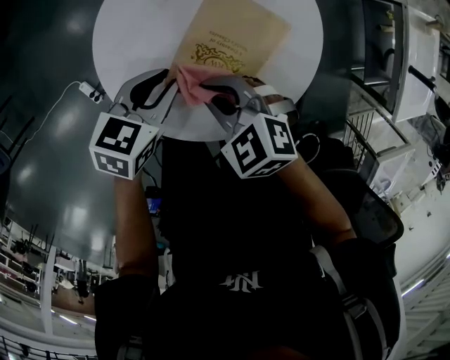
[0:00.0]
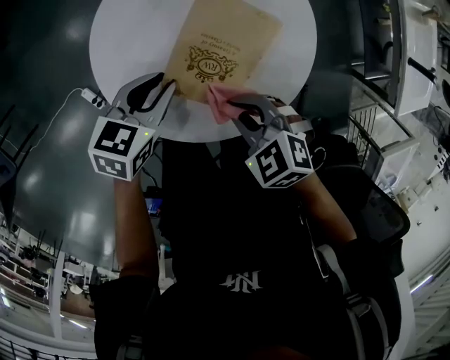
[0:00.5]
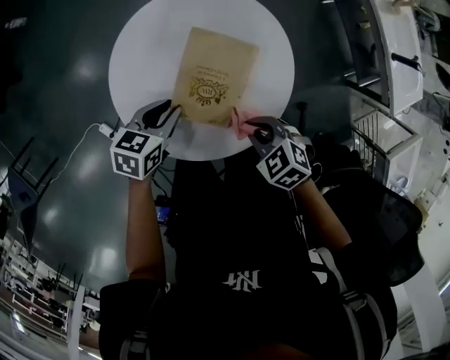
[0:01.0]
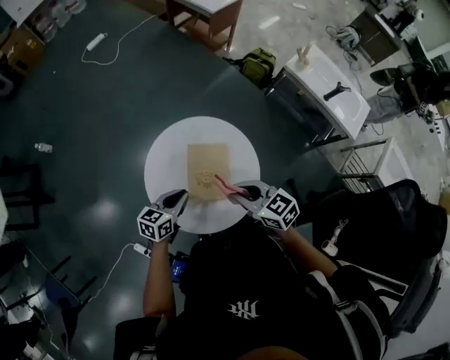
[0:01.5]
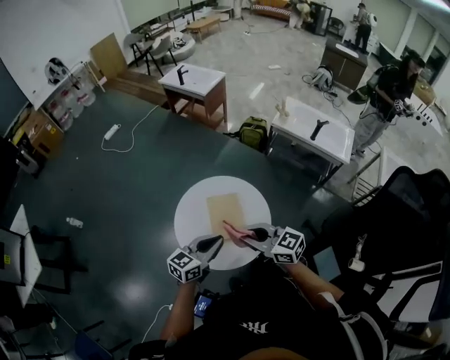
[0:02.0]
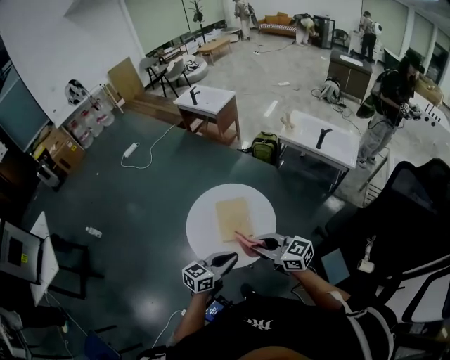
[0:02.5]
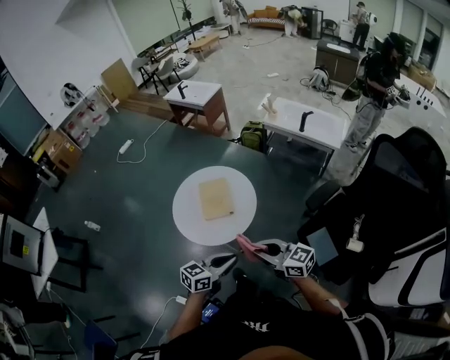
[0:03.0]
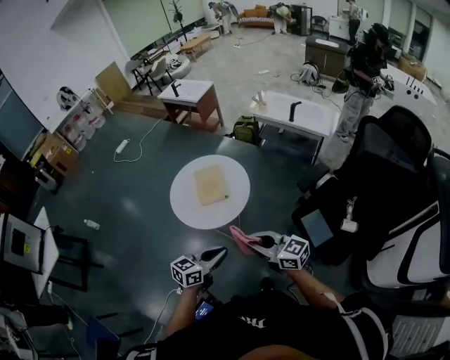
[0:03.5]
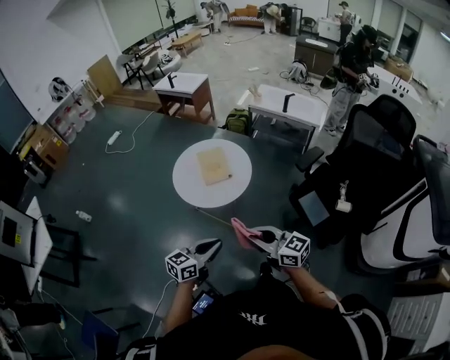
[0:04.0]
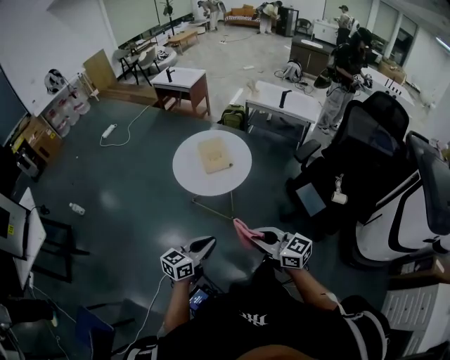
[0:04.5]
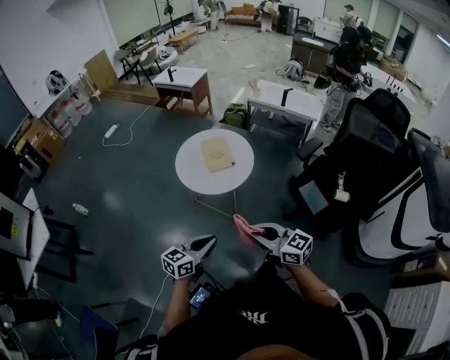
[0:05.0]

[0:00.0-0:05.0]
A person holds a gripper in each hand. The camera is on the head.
0:00.0 to 0:02.5: The two grippers go approximately 35 cm upward. The left gripper points its fingers roughly 30 degrees further upward. Meanwhile the right gripper tips its fingers upward by some 40 degrees.
0:02.5 to 0:05.0: Both grippers travel together backward, some 40 cm.

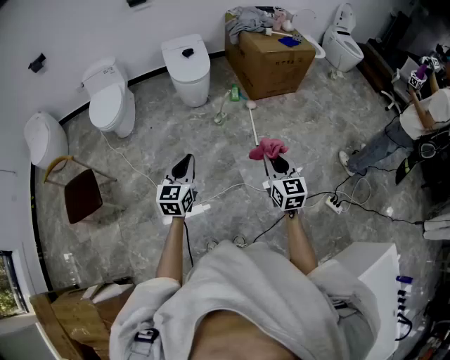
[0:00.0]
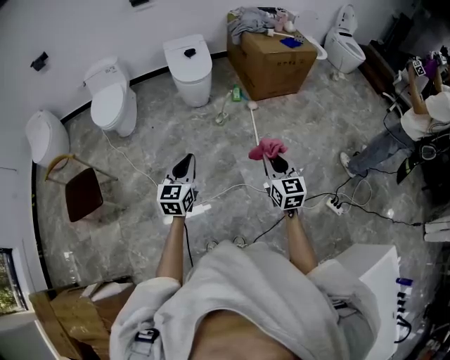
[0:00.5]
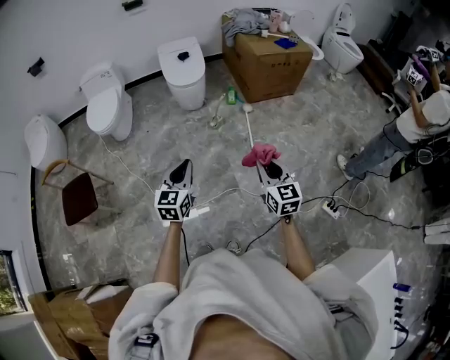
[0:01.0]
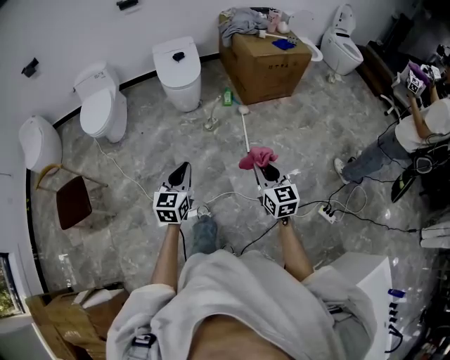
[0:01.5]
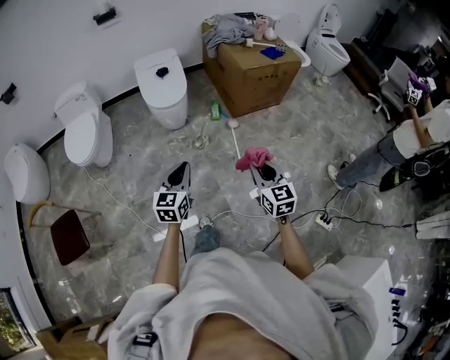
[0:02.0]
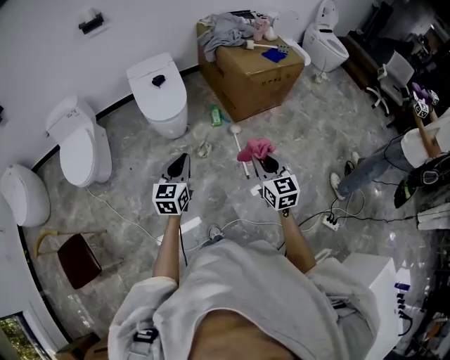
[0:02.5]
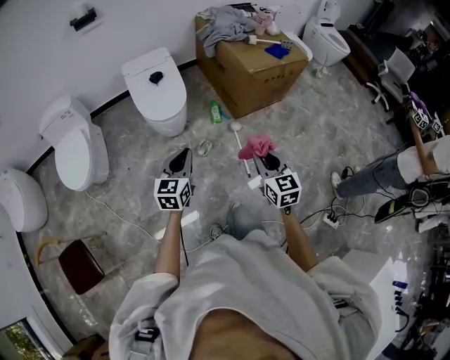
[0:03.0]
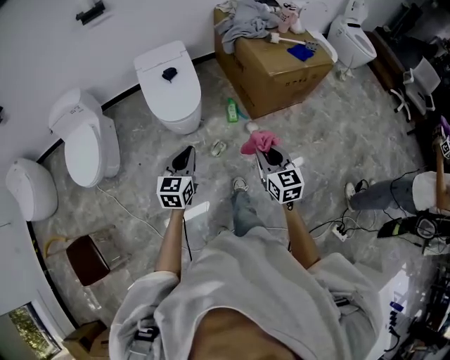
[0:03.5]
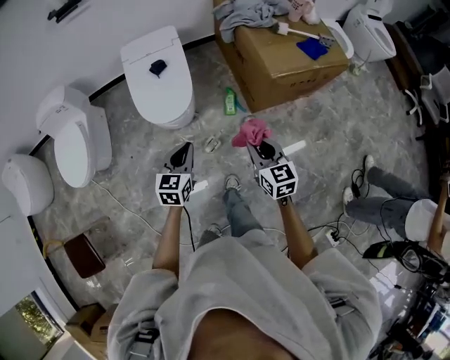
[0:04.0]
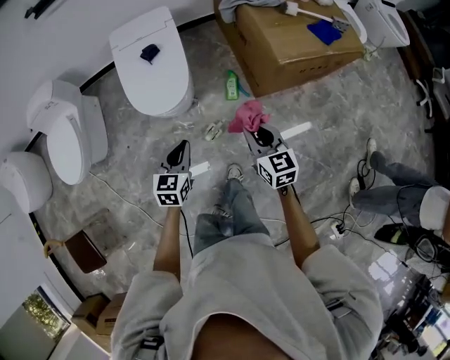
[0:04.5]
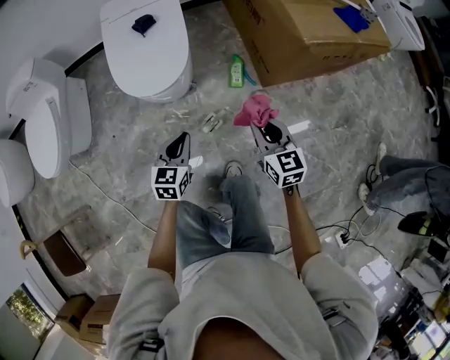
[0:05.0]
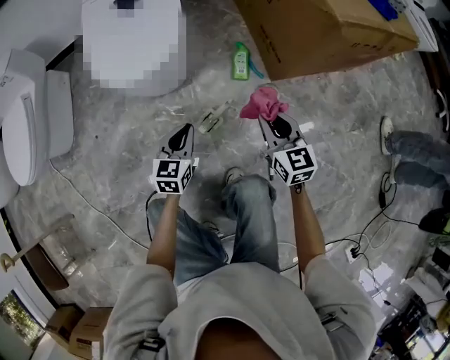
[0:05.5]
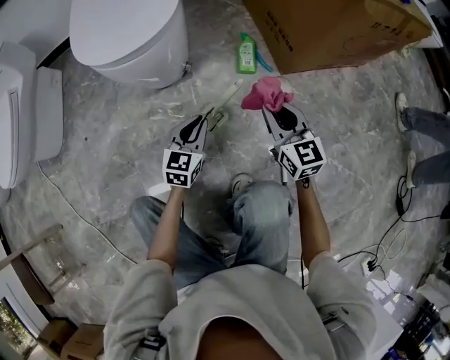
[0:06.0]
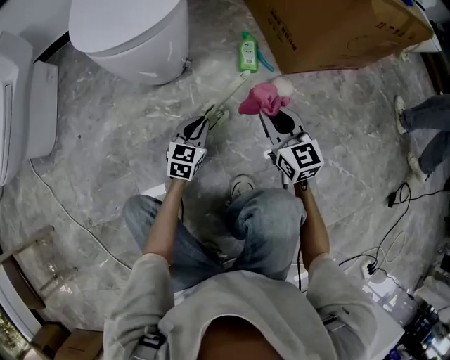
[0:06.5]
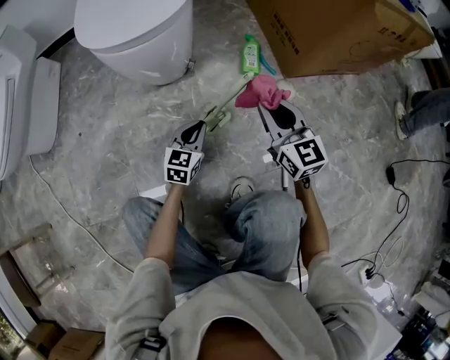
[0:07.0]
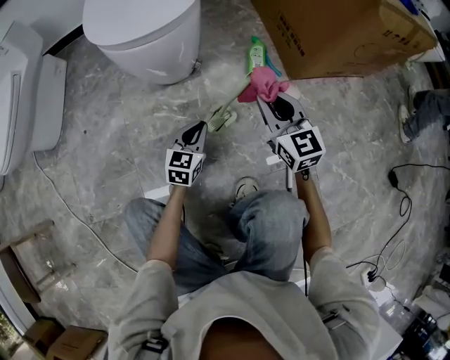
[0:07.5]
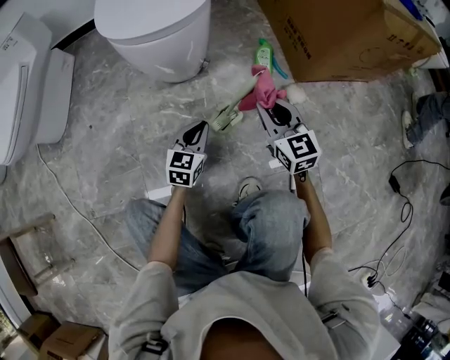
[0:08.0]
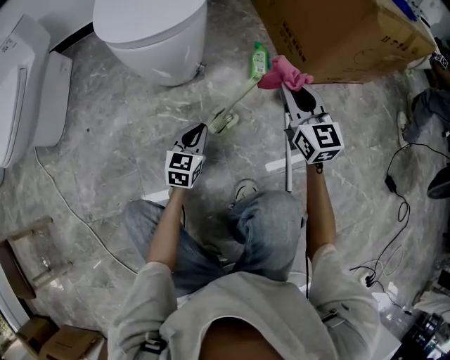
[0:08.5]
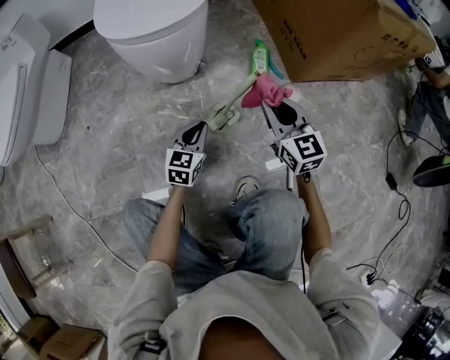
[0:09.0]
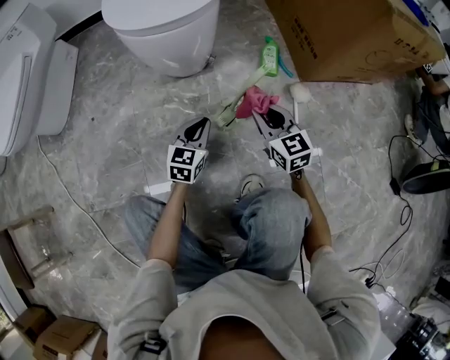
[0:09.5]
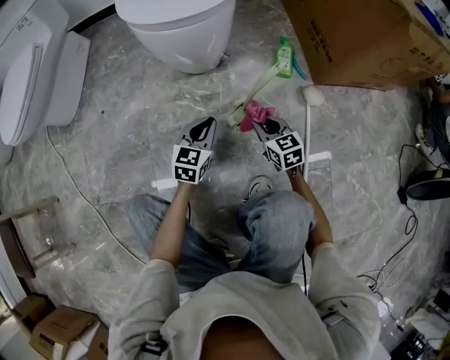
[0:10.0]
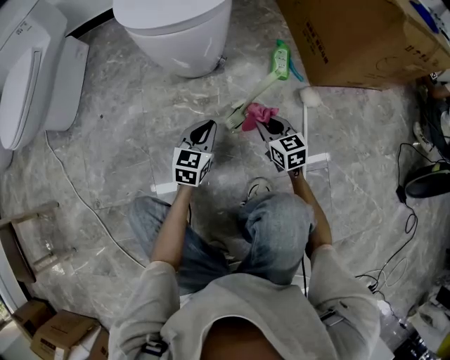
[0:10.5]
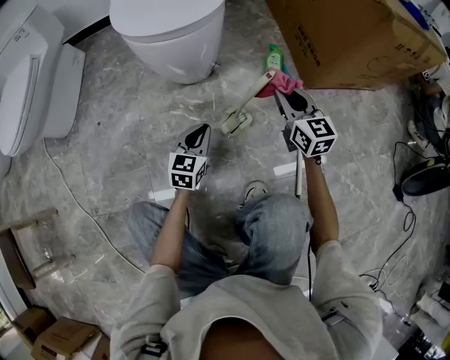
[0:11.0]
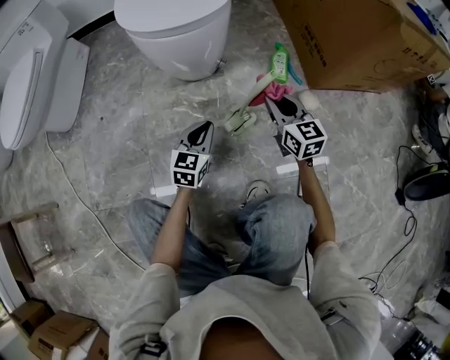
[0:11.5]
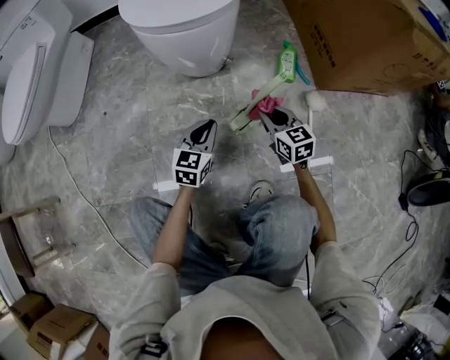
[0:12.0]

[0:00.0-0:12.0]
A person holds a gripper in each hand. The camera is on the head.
0:00.0 to 0:02.0: Both grippers move forward, some 20 cm.
0:02.0 to 0:04.0: The two grippers travel together, forward, about 40 cm.
0:04.0 to 0:06.0: Both grippers travel together downward, approximately 50 cm.
0:06.0 to 0:08.0: The right gripper travels to the left by about 5 cm; the left gripper shifts by about 5 cm.
0:08.0 to 0:10.0: The right gripper moves downward, some 15 cm, and swivels some 20 degrees.
0:10.0 to 0:12.0: The right gripper reaches approximately 15 cm upward, then returns.

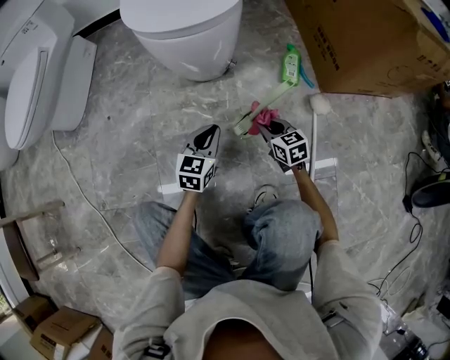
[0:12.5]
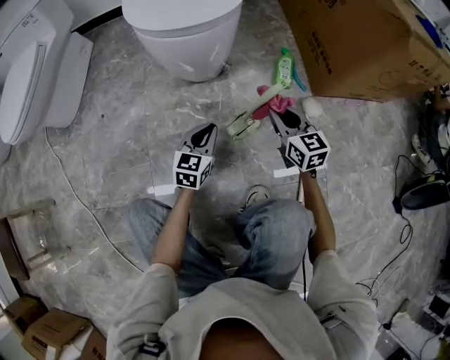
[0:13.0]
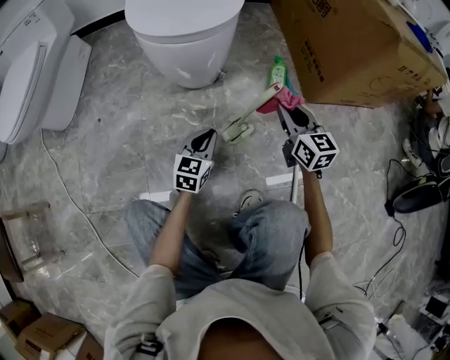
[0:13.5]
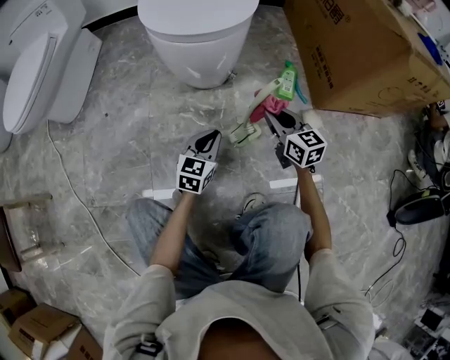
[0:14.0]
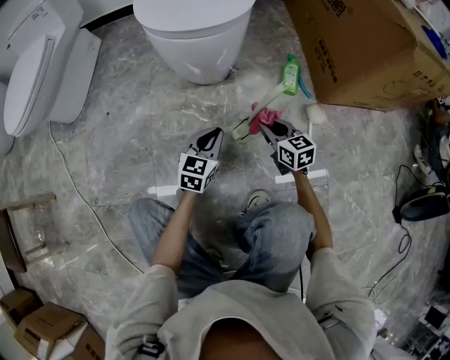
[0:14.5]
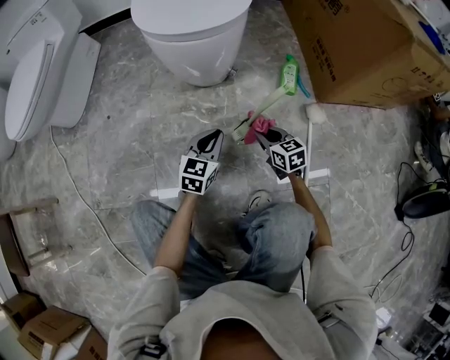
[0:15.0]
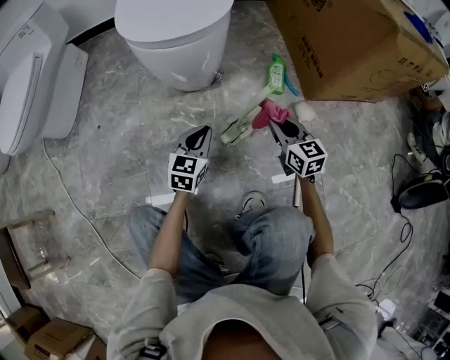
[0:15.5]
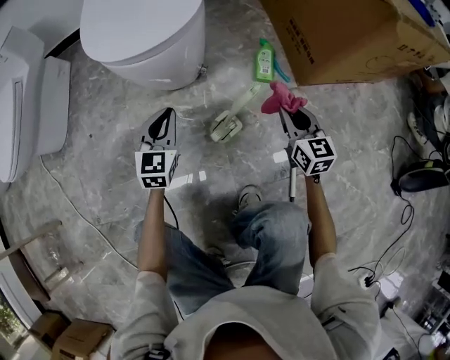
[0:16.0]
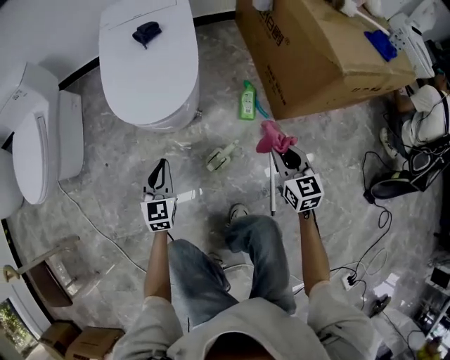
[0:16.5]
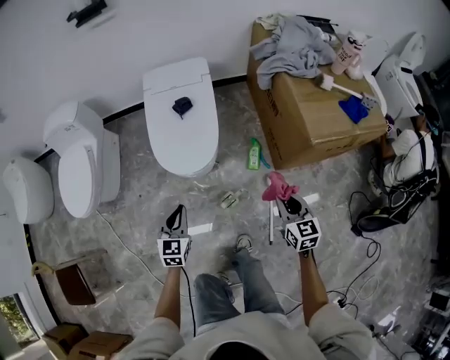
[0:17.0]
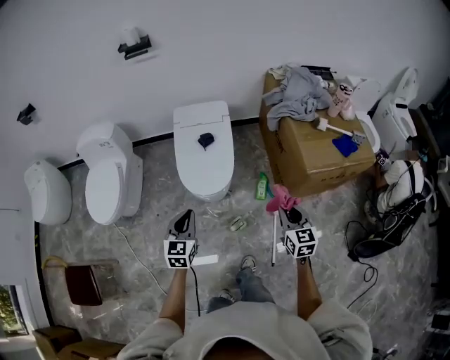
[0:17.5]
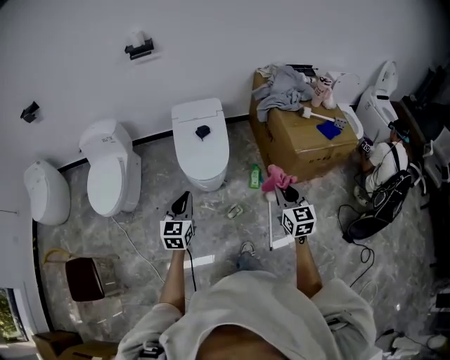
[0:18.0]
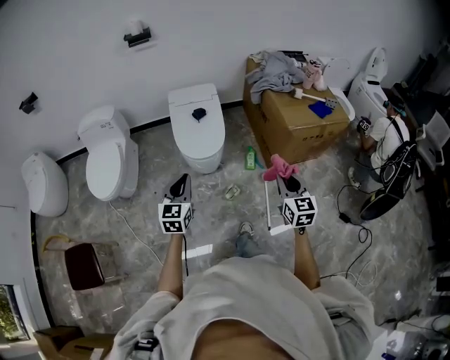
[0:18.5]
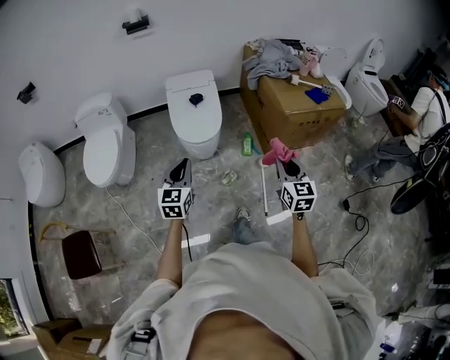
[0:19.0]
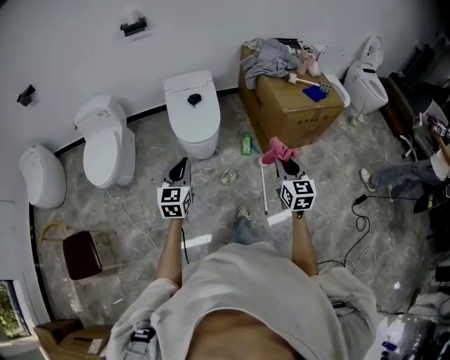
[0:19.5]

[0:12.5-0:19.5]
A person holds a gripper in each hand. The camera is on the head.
0:12.5 to 0:14.5: The right gripper goes upward and returns, roughly 20 cm each way.
0:14.5 to 0:16.0: The right gripper travels to the right and upward by approximately 15 cm, and changes its angle by some 20 degrees. The left gripper goes roughly 10 cm forward and upward.
0:16.0 to 0:17.5: The two grippers go roughly 50 cm upward.
0:17.5 to 0:19.5: Both grippers travel together backward and upward, some 20 cm.

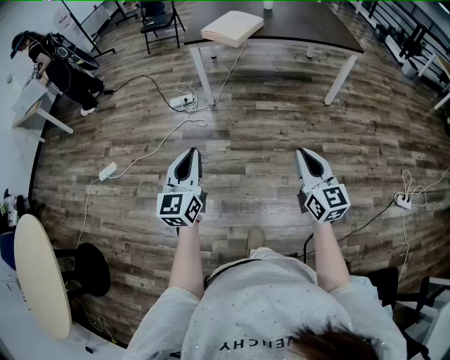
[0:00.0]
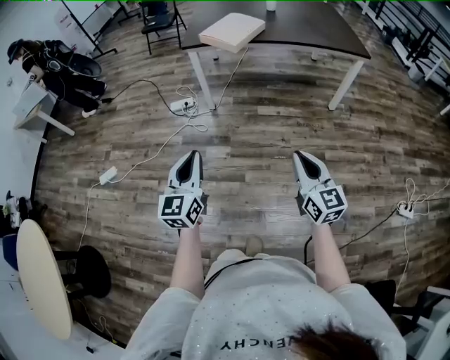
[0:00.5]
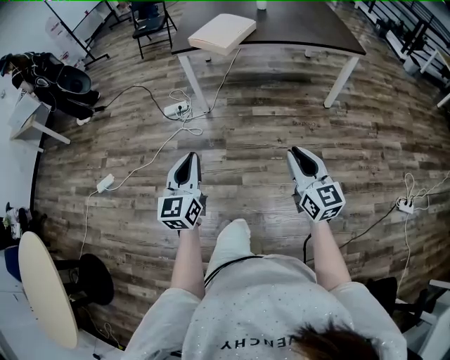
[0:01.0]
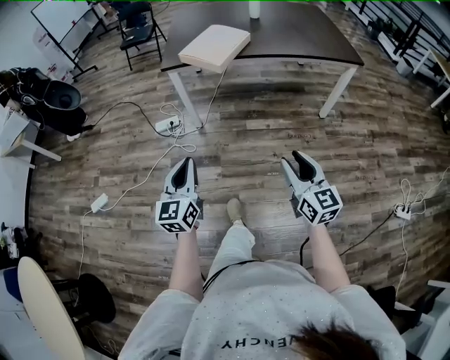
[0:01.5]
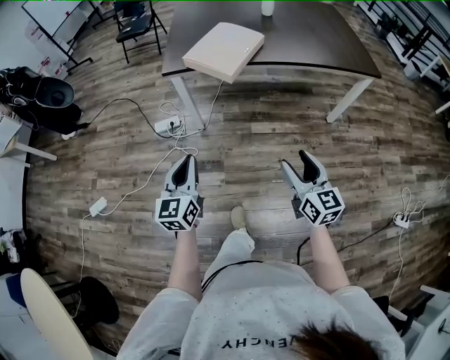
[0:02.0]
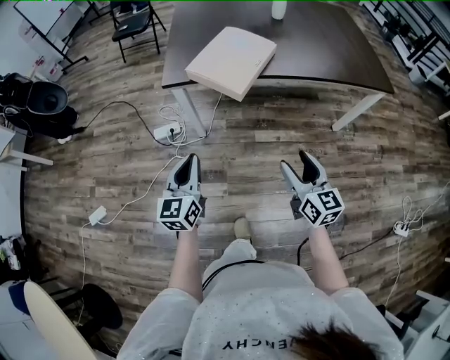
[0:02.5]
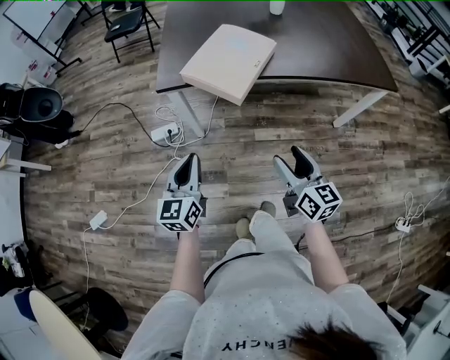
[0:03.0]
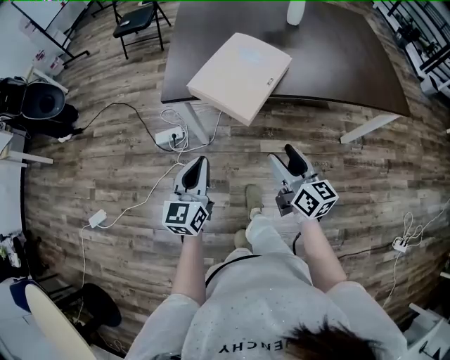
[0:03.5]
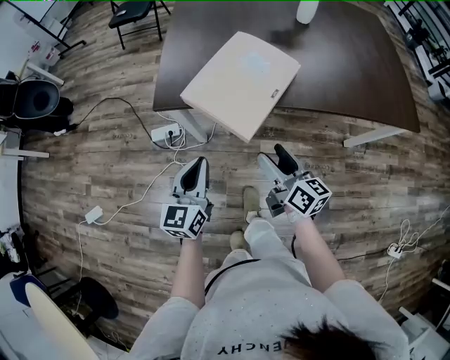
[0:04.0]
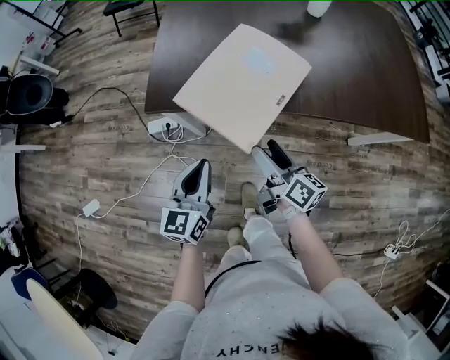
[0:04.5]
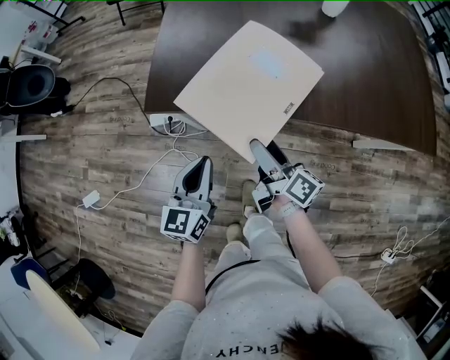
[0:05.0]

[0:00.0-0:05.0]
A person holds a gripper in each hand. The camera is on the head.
0:00.0 to 0:02.5: Both grippers are carried forward, some 50 cm. The right gripper opens up.
0:02.5 to 0:05.0: The grippers both shift forward by some 35 cm. The right gripper twists roughly 50 degrees clockwise, seen from behind.
